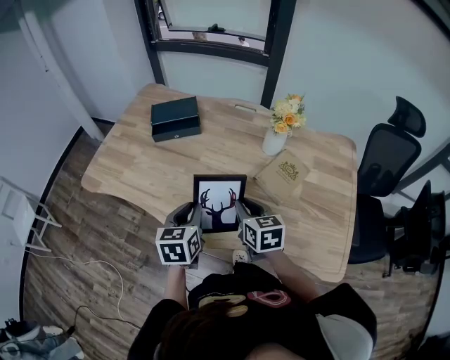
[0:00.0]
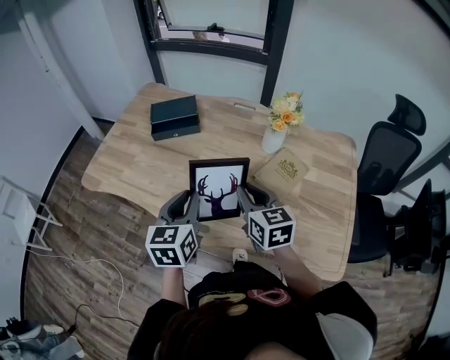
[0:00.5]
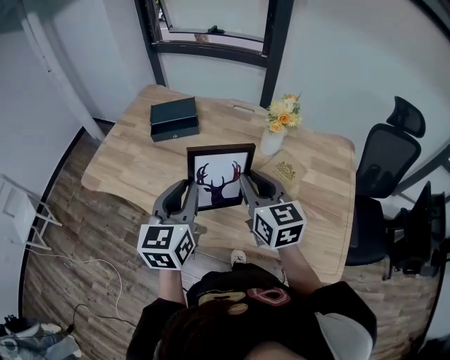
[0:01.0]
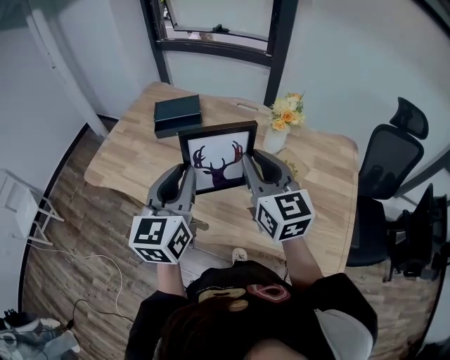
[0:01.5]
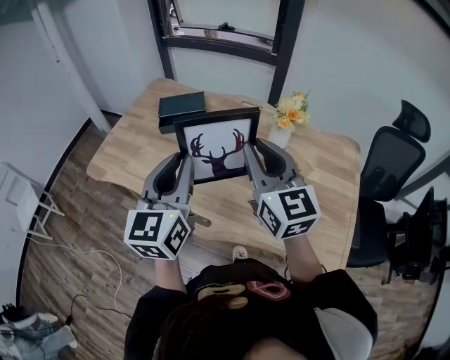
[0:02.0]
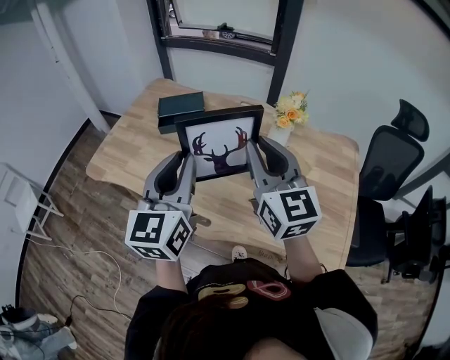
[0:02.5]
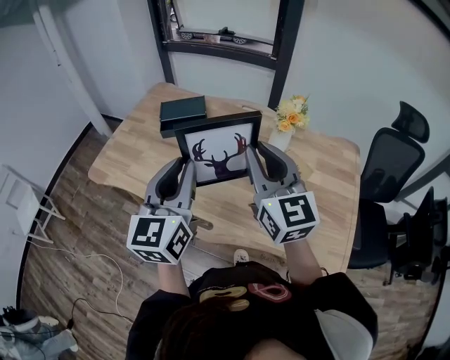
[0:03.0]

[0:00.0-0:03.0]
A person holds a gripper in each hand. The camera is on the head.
0:00.0 to 0:01.5: The two grippers go approximately 20 cm upward. The left gripper rotates some 30 degrees. Meanwhile the right gripper turns by about 30 degrees.
0:01.5 to 0:03.0: There are only small adjustments of the grippers.

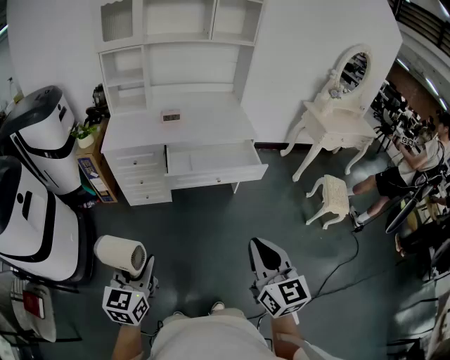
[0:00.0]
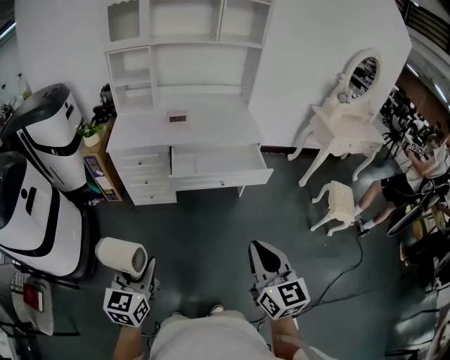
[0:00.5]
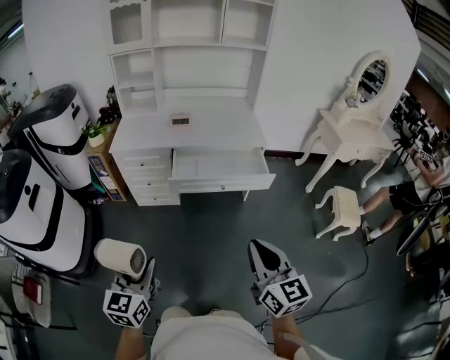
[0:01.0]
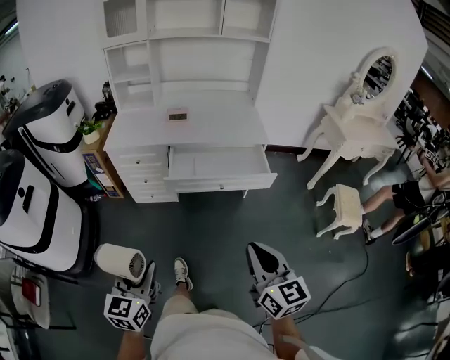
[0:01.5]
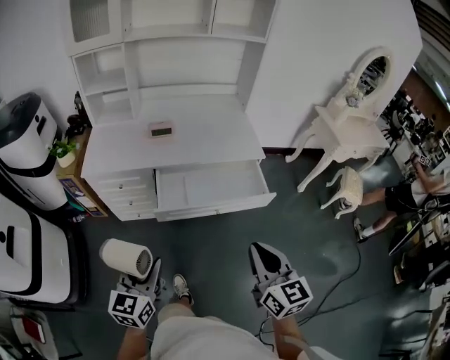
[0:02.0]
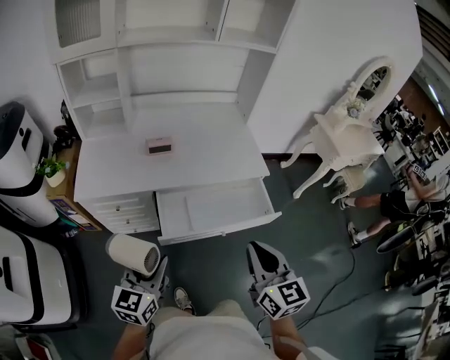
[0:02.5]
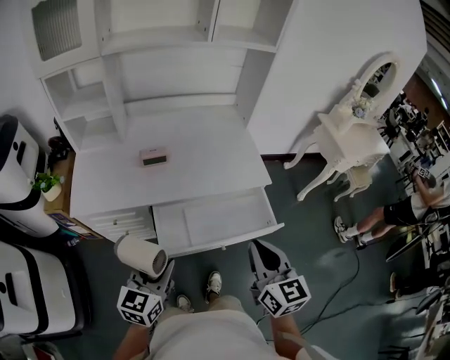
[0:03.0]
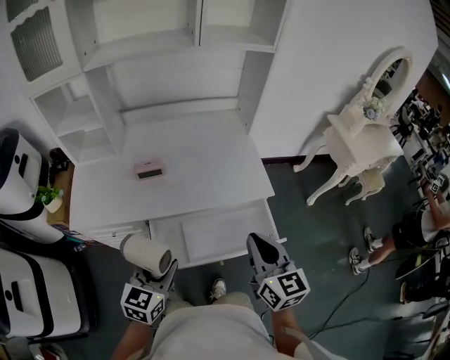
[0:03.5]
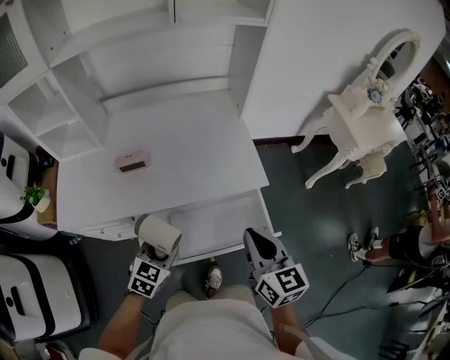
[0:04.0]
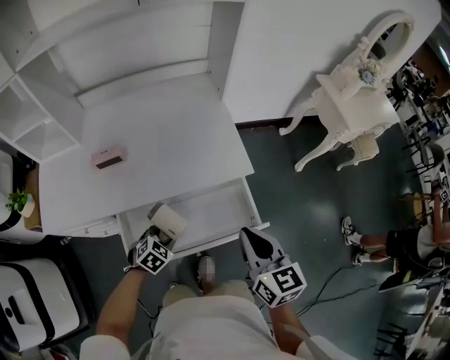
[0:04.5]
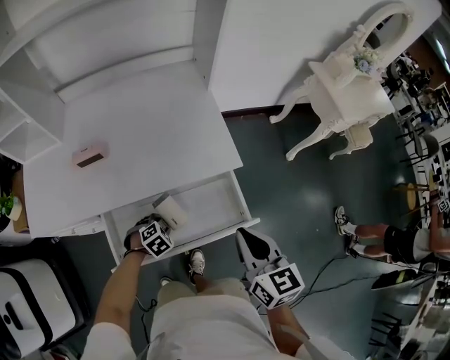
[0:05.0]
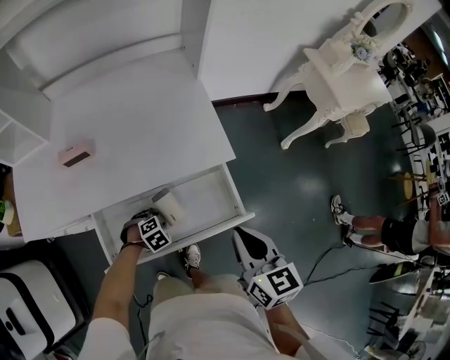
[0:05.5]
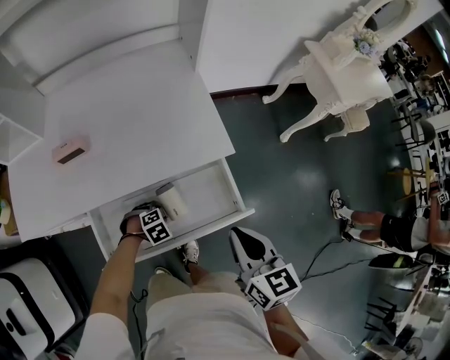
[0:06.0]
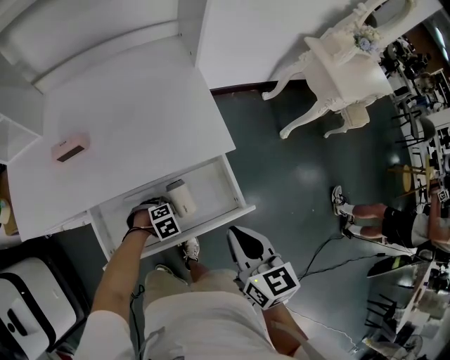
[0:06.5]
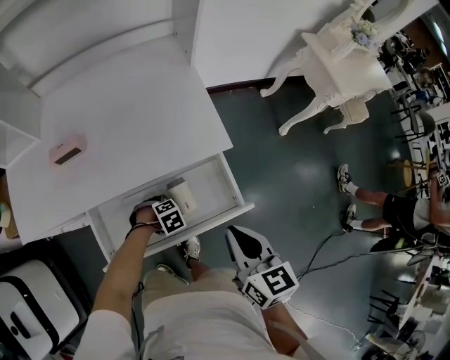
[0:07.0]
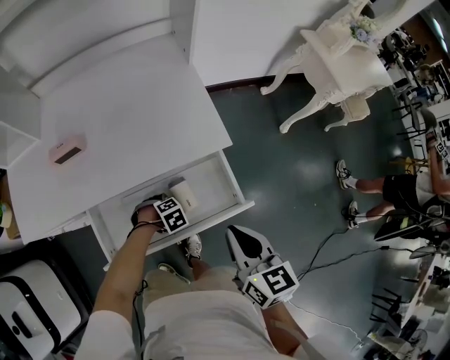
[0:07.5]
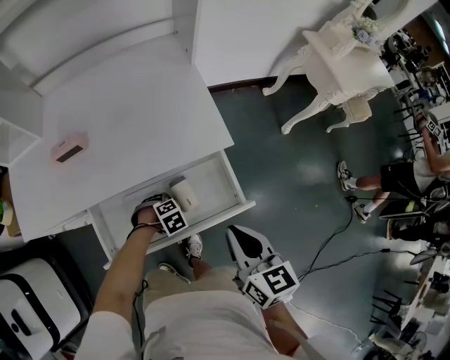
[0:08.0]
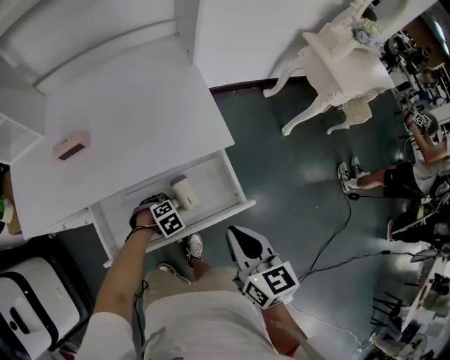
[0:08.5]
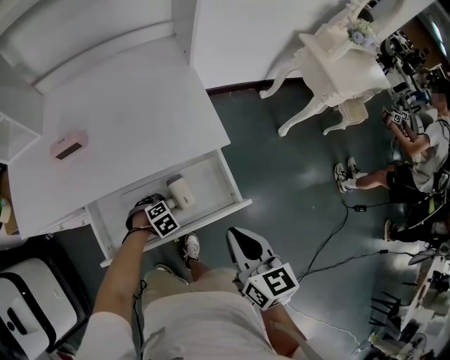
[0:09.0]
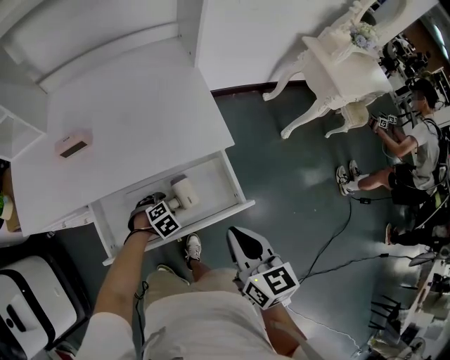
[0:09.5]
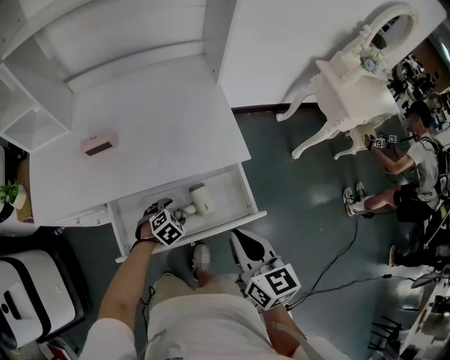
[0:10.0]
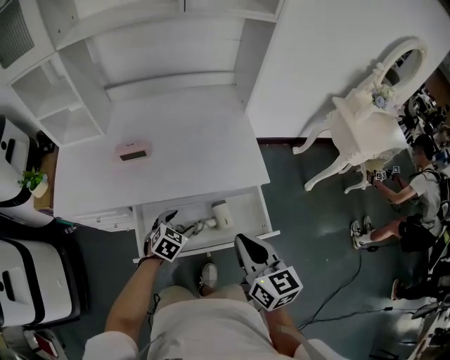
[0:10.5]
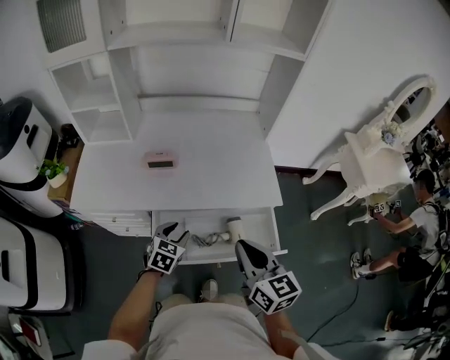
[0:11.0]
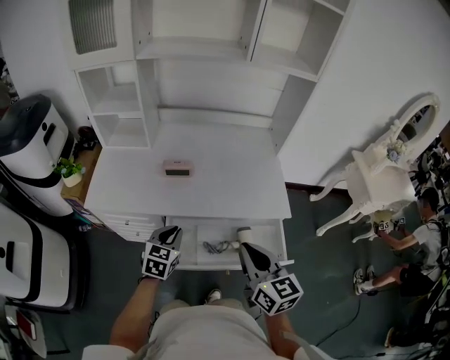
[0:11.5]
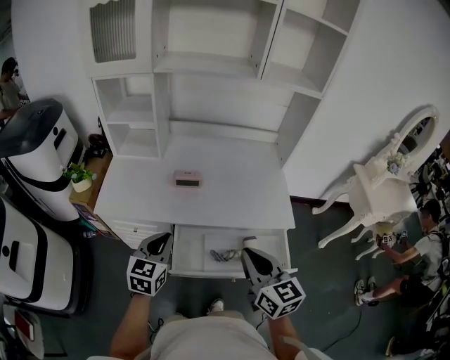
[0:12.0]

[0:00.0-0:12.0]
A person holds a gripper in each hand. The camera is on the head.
0:00.0 to 0:02.0: The two grippers go about 25 cm forward.
0:02.0 to 0:04.0: Both grippers move forward, approximately 35 cm. The left gripper changes its angle by some 40 degrees.
0:04.0 to 0:06.0: The right gripper travels downward by some 10 cm. The left gripper travels downward by roughly 25 cm, and points its fingers some 40 degrees further downward.
0:06.0 to 0:08.0: There are only small adjustments of the grippers.
0:08.0 to 0:10.0: The left gripper moves upward, about 5 cm, and turns by approximately 30 degrees, while the right gripper moves about 5 cm.
0:10.0 to 0:12.0: The right gripper shifts by approximately 20 cm, and rotates roughly 20 degrees. Meanwhile the left gripper heads upward, covering some 30 cm, angles its fingers upward, by roughly 50 degrees, and closes its fingers.

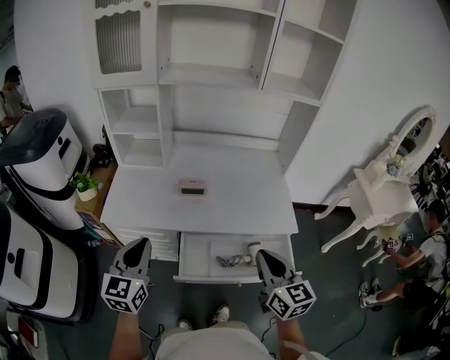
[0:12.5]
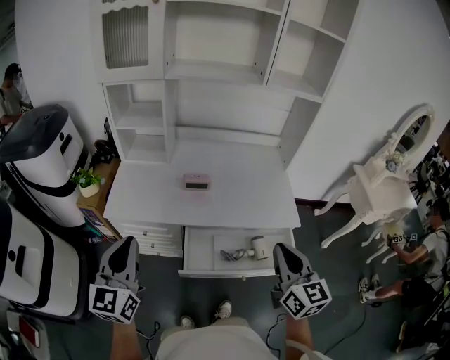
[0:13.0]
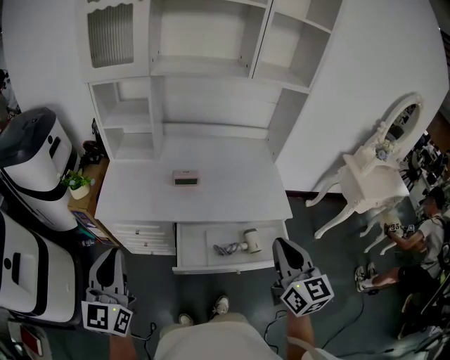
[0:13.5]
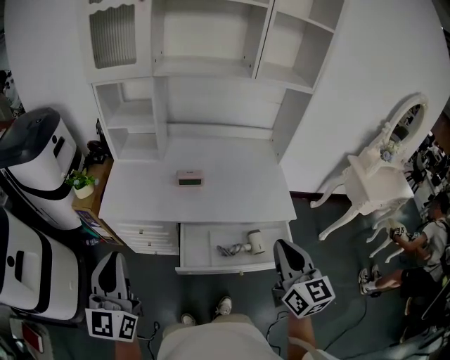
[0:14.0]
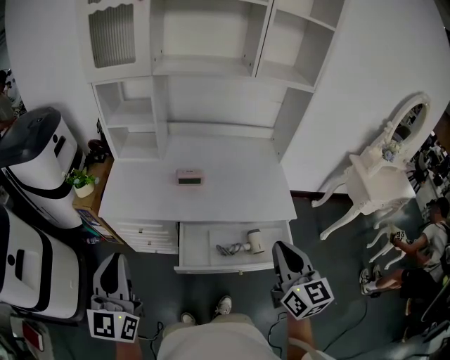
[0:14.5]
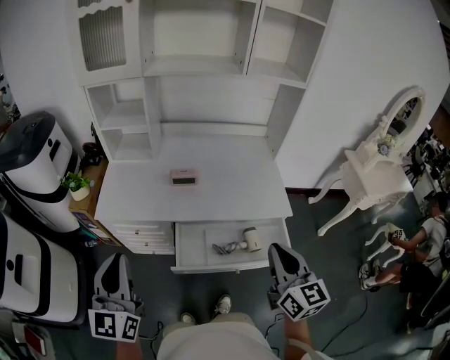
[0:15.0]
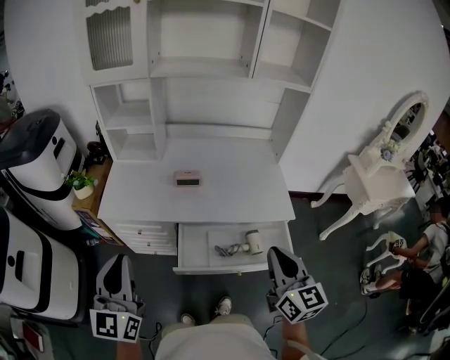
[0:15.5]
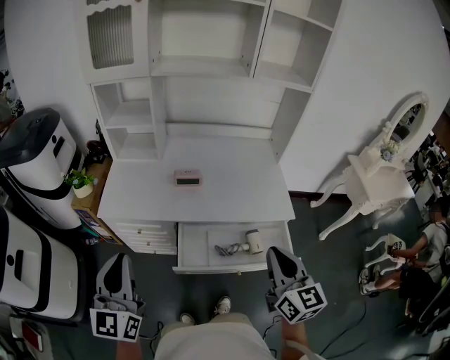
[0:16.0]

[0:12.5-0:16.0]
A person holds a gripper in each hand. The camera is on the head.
0:12.5 to 0:14.5: The right gripper shifts by about 5 cm; the left gripper goes about 15 cm backward, upward and to the left.
0:14.5 to 0:16.0: There are only small adjustments of the grippers.

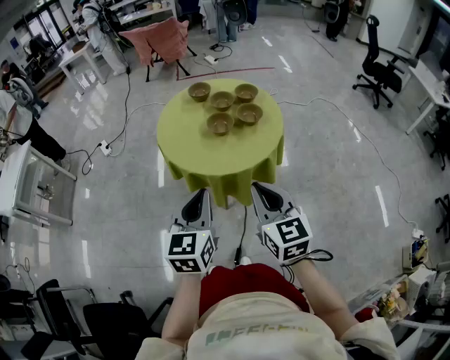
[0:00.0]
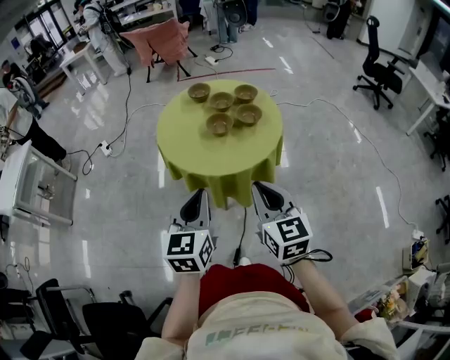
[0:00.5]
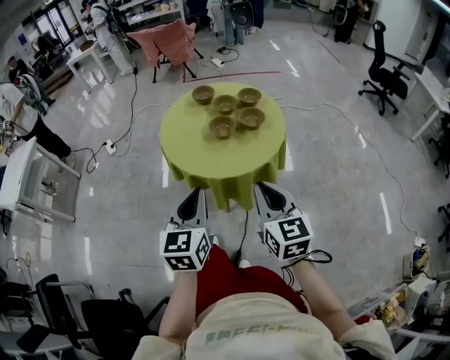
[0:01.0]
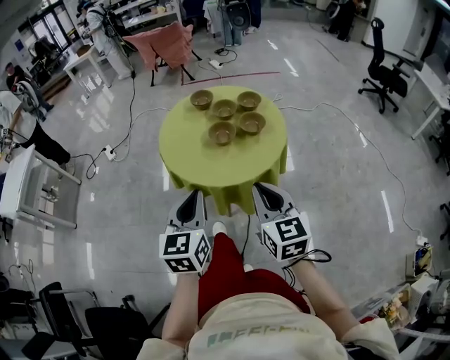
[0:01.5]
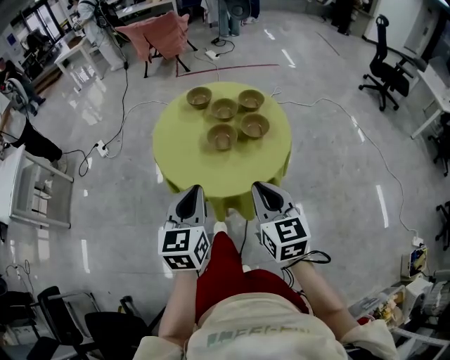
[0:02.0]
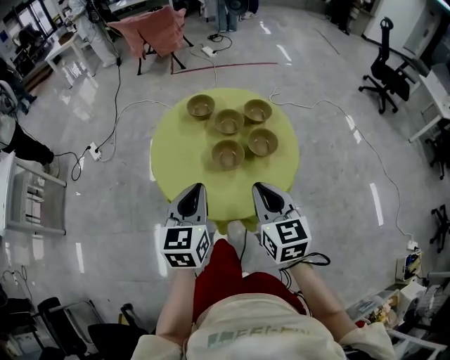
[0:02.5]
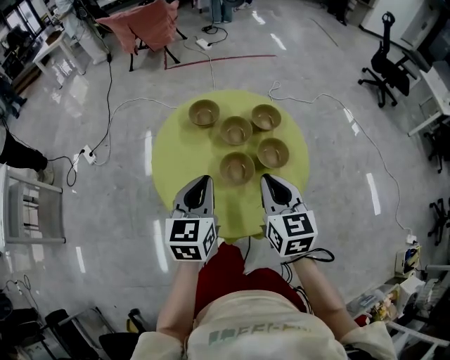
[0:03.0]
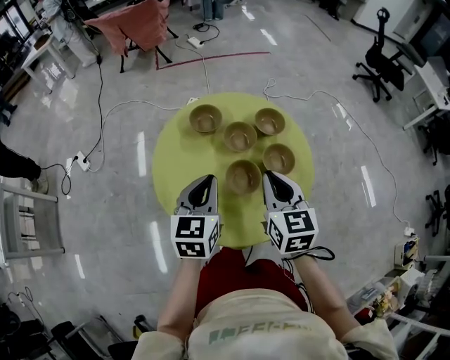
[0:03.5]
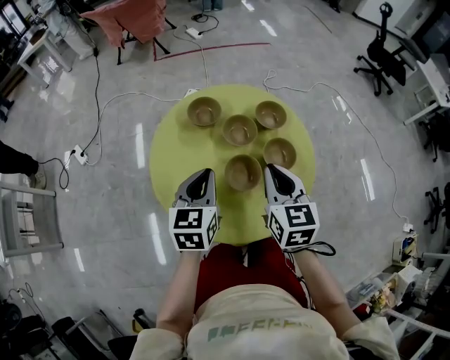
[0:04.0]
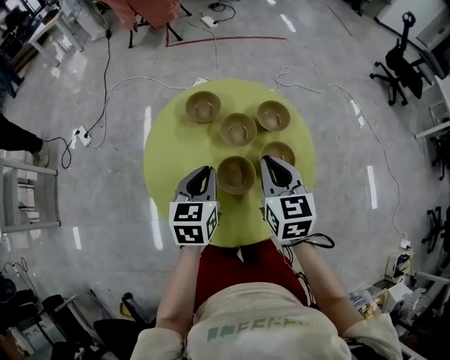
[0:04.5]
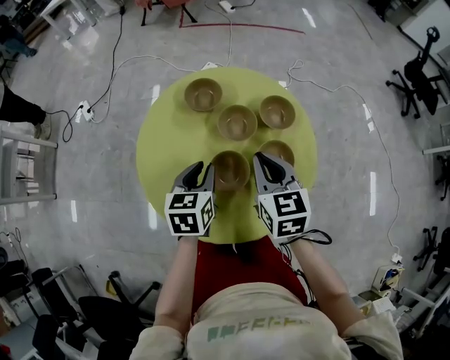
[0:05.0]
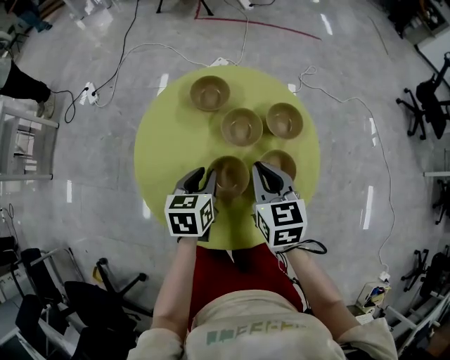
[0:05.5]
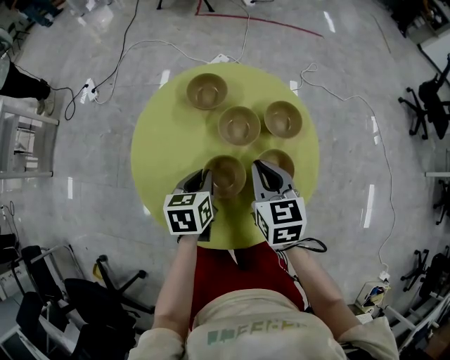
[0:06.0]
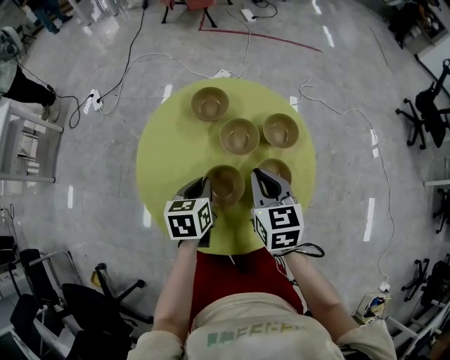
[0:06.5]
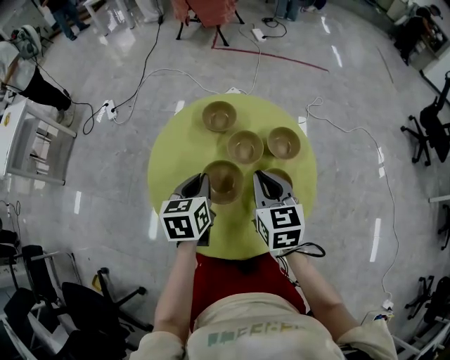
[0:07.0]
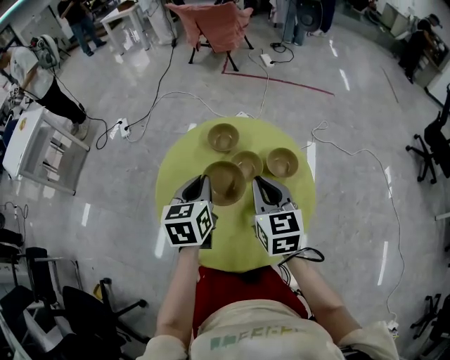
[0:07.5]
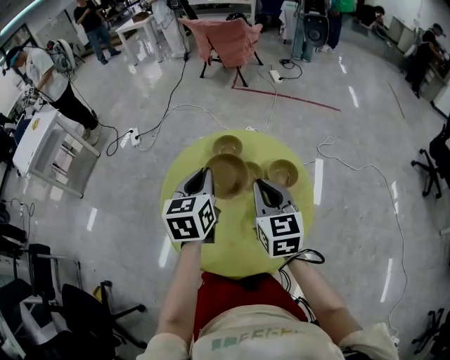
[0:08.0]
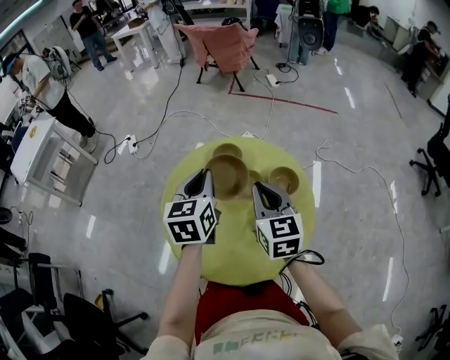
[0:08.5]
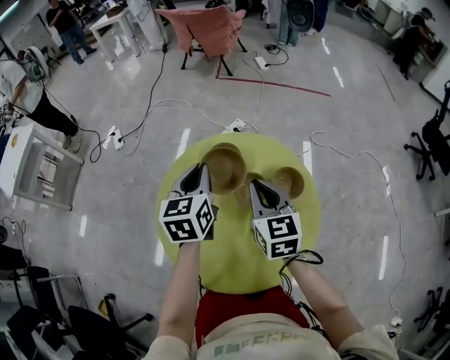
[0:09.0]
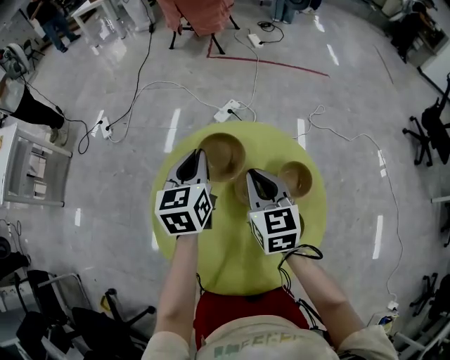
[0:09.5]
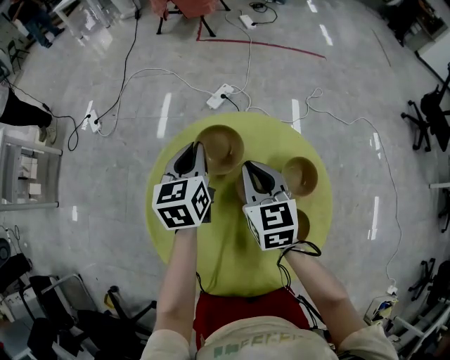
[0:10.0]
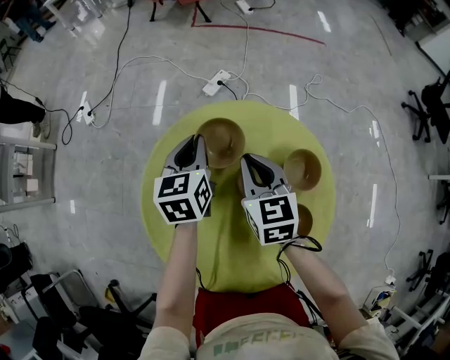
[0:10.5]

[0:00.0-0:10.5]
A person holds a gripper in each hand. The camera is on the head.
0:00.0 to 0:02.0: Both grippers travel together forward, some 10 cm.
0:02.0 to 0:04.0: Both grippers move forward, roughly 25 cm.
0:04.0 to 0:06.5: The right gripper heads forward and downward, covering about 10 cm, and swivels approximately 20 degrees. The left gripper shifts about 15 cm downward and to the right, and turns by about 30 degrees.
0:06.5 to 0:08.5: The right gripper shifts about 10 cm upward. The left gripper is displaced upward by roughly 20 cm, and turns by about 30 degrees.
0:08.5 to 0:10.5: The two grippers go approximately 25 cm forward and downward.
